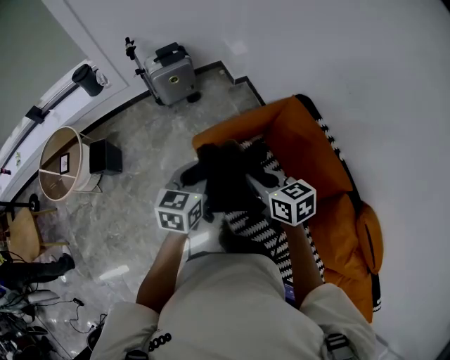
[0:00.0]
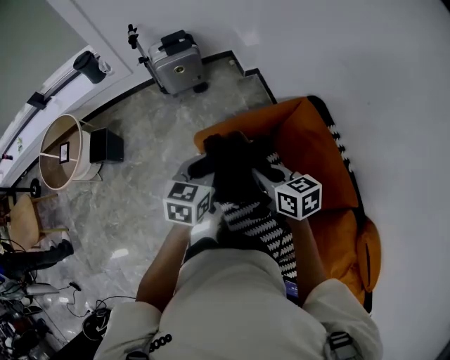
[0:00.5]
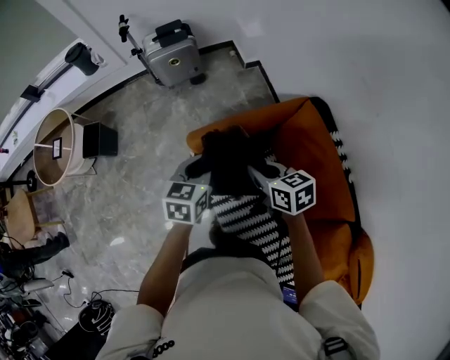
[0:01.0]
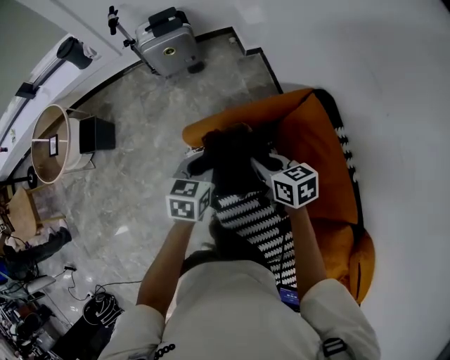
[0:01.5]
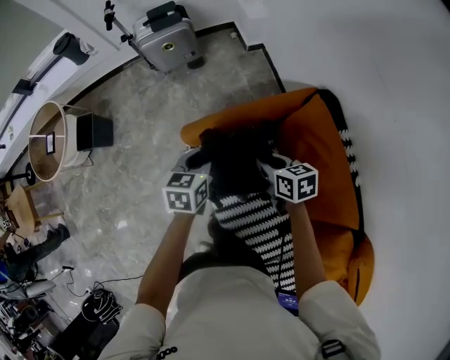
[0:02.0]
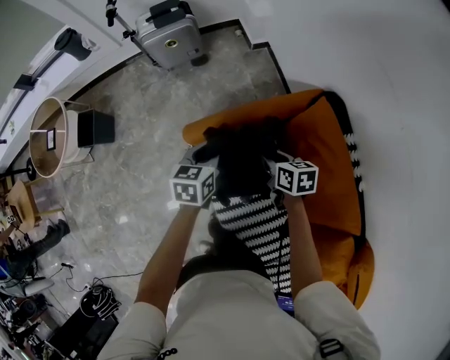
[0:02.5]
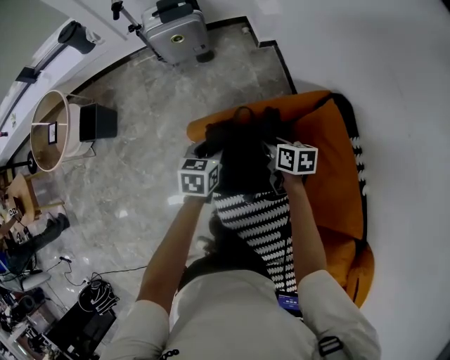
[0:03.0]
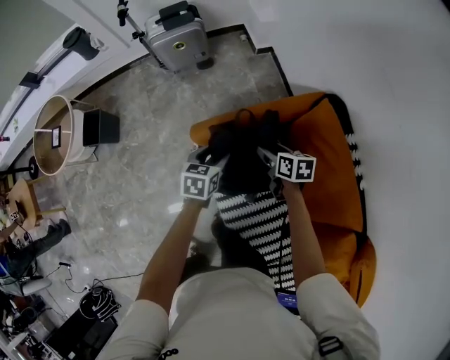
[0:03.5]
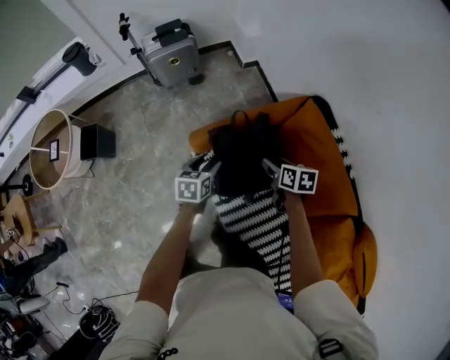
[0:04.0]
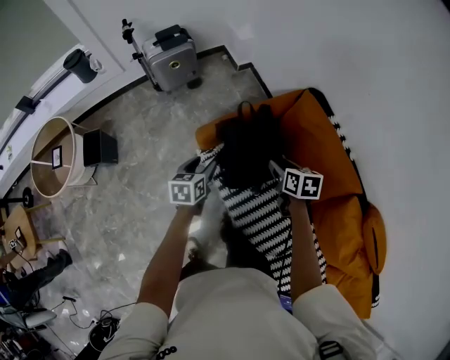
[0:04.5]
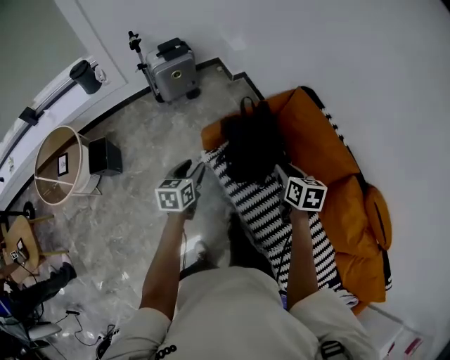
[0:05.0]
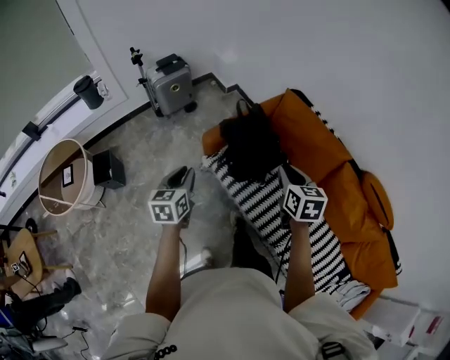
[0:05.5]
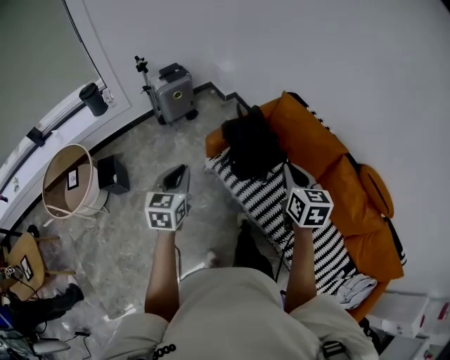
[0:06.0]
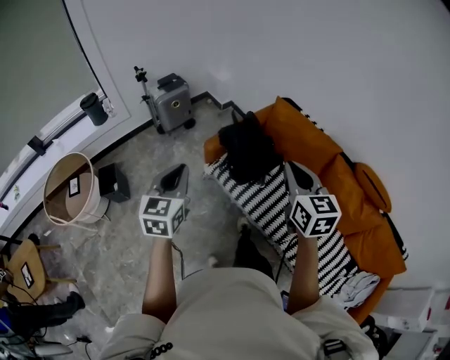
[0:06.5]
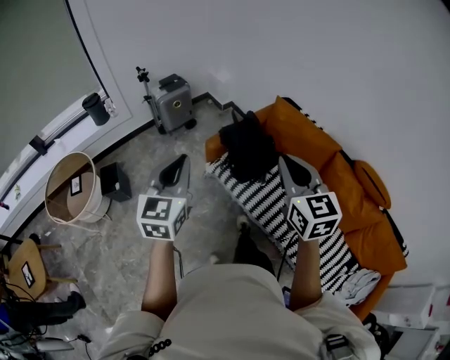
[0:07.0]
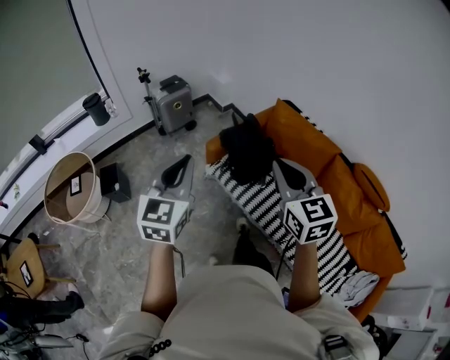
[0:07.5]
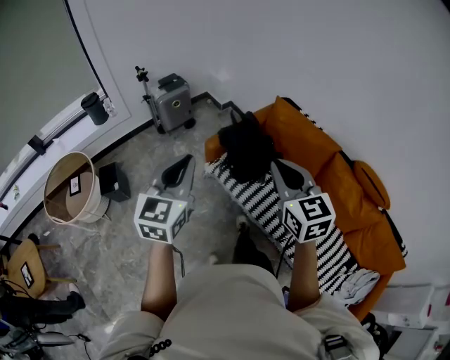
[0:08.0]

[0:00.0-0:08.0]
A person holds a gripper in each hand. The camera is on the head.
0:00.0 to 0:02.0: Both grippers move downward, forward and to the right, approximately 30 cm.
0:02.0 to 0:04.0: The left gripper travels to the left and backward by about 10 cm, and opens. The right gripper opens.
0:04.0 to 0:06.0: The left gripper moves backward, upward and to the left, approximately 40 cm, swivels about 30 degrees, and closes up. The right gripper moves backward and upward, about 50 cm, rotates some 40 degrees, and closes its fingers.
0:06.0 to 0:08.0: The left gripper shifts some 15 cm upward and backward. The right gripper goes approximately 15 cm upward, backward and to the left.

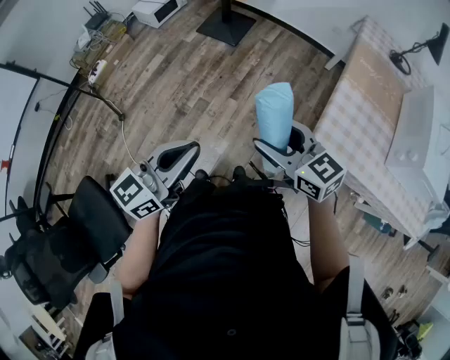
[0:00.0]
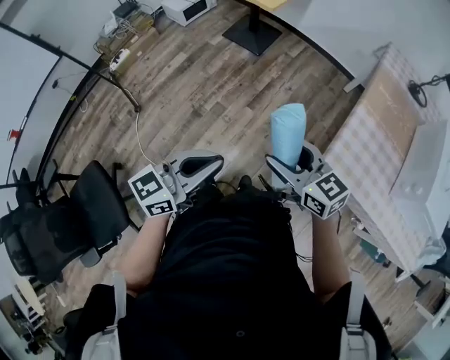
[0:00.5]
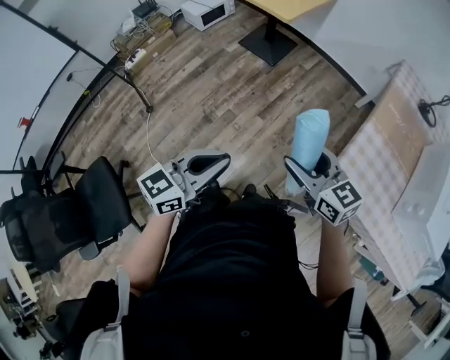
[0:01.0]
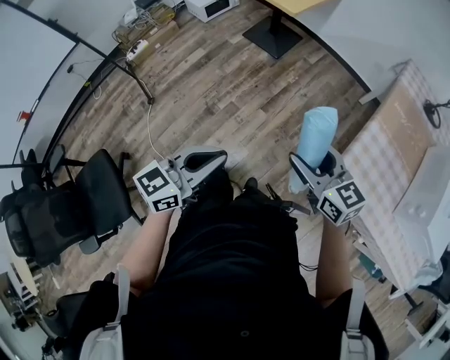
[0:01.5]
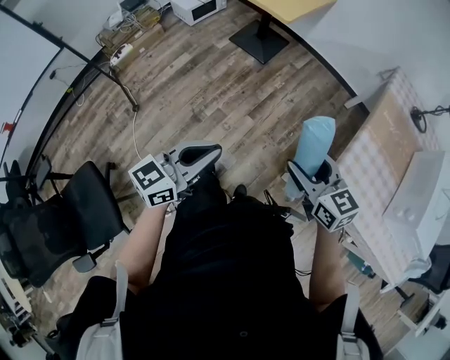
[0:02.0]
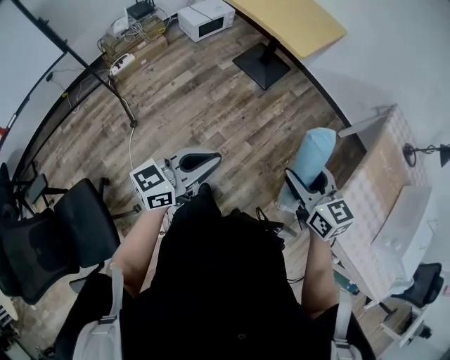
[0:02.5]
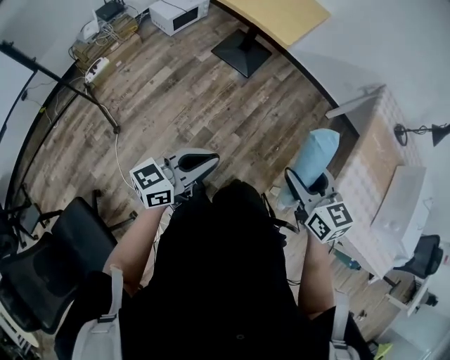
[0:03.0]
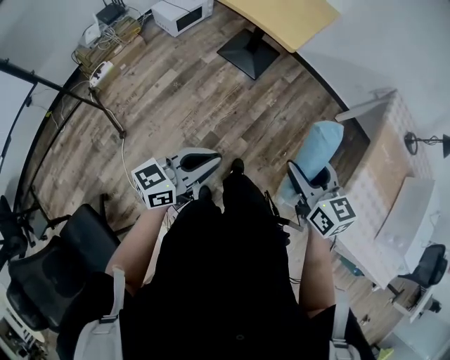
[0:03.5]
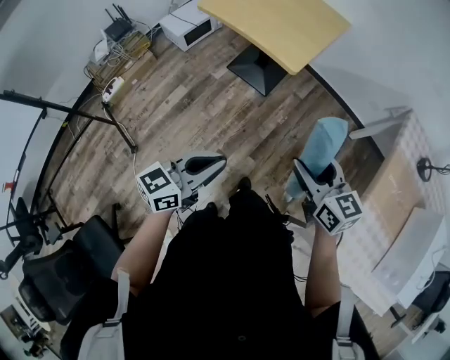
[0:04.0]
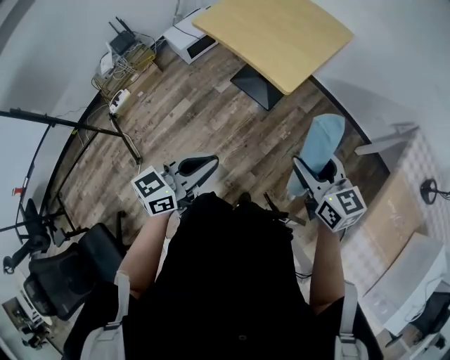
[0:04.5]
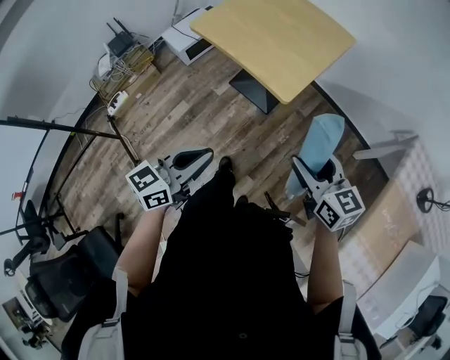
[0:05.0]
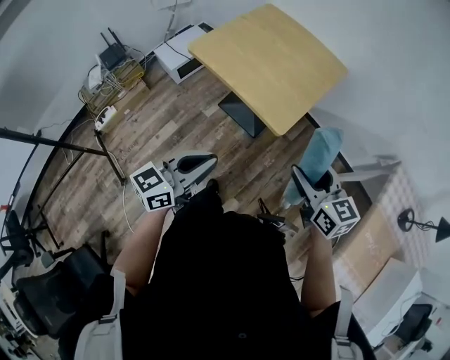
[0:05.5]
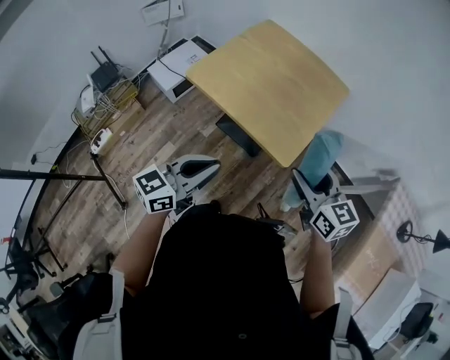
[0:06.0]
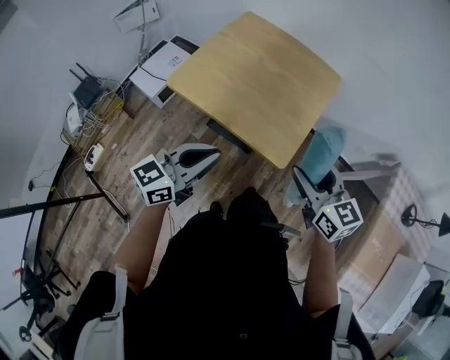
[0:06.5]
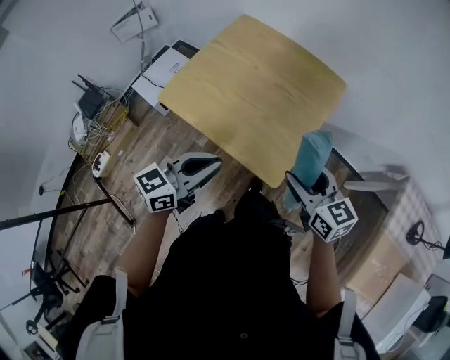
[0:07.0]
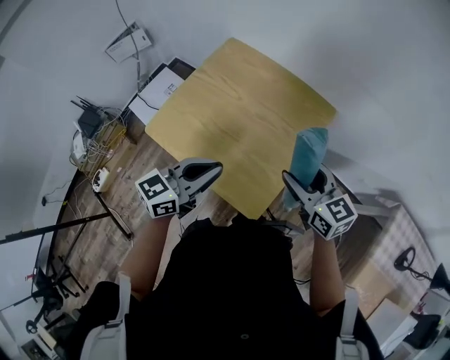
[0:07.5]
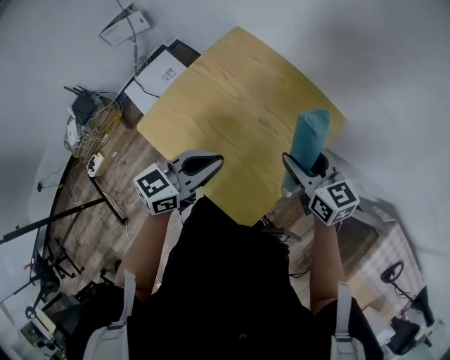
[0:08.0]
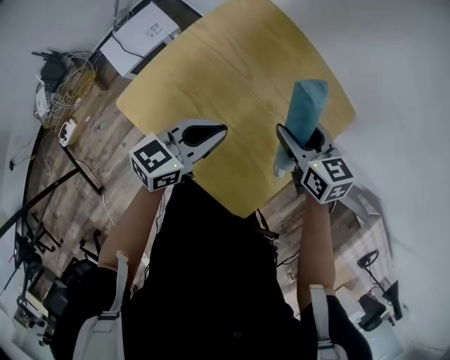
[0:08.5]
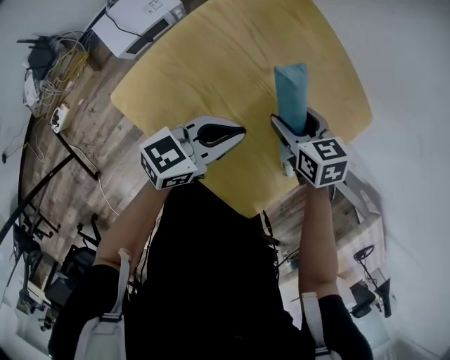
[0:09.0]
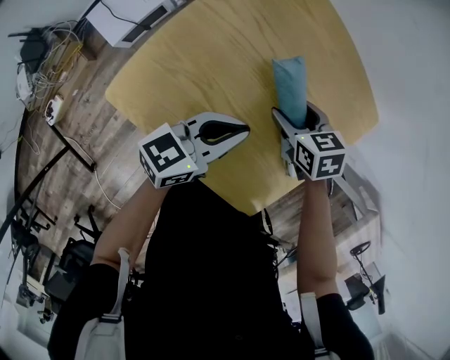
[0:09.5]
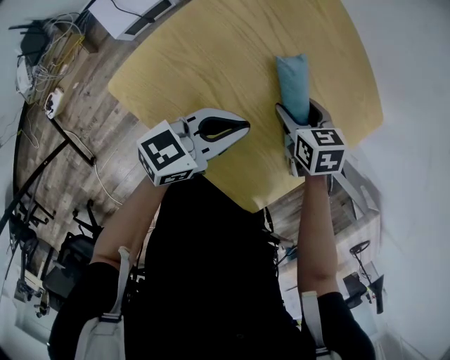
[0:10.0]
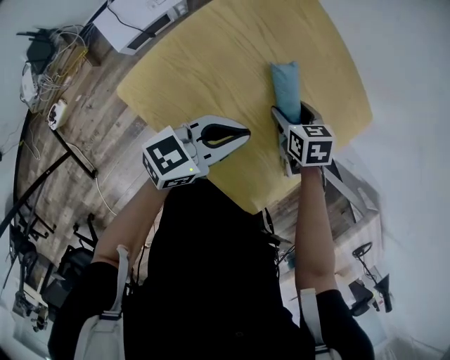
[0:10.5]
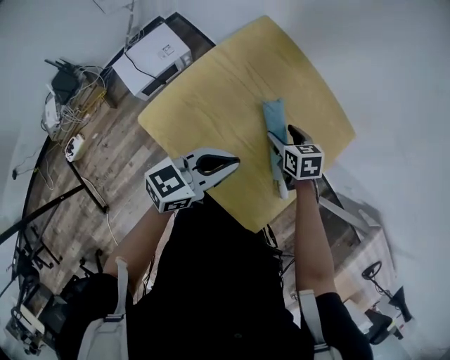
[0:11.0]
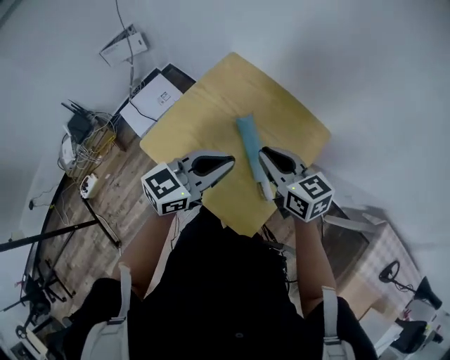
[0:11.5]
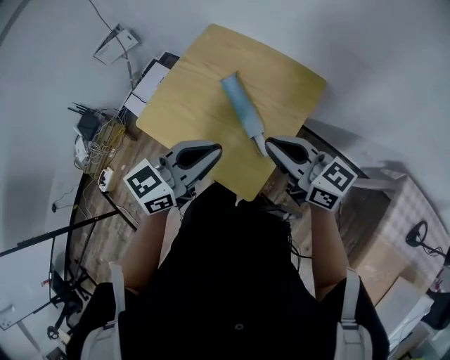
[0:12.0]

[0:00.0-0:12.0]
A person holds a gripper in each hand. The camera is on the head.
0:00.0 to 0:02.0: Both grippers move forward, about 5 cm.
0:02.0 to 0:04.0: Both grippers travel together forward, about 30 cm.
0:04.0 to 0:06.0: Both grippers move forward, approximately 35 cm.
0:06.0 to 0:08.0: The two grippers go roughly 35 cm forward.
0:08.0 to 0:10.0: The left gripper goes some 20 cm downward, forward and to the left. Meanwhile the right gripper heads downward and to the left, covering about 25 cm, and tips its fingers downward by some 40 degrees.
0:10.0 to 0:12.0: The two grippers go about 35 cm upward, backward and to the right. The right gripper tips its fingers upward by about 60 degrees, and closes up; the left gripper swivels about 20 degrees.

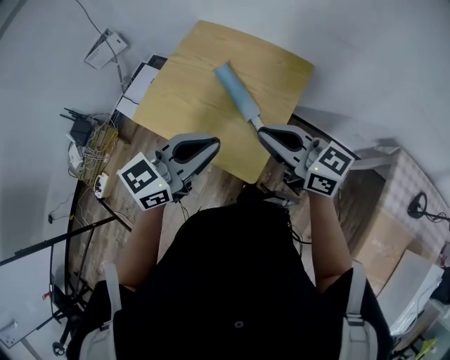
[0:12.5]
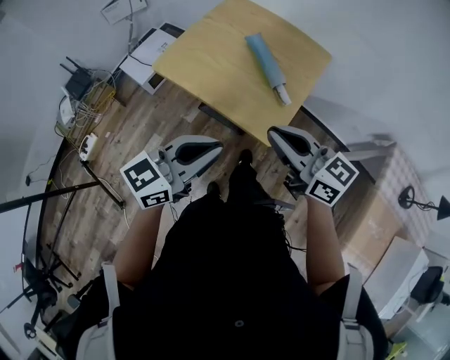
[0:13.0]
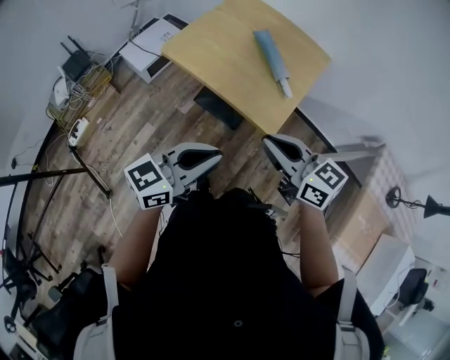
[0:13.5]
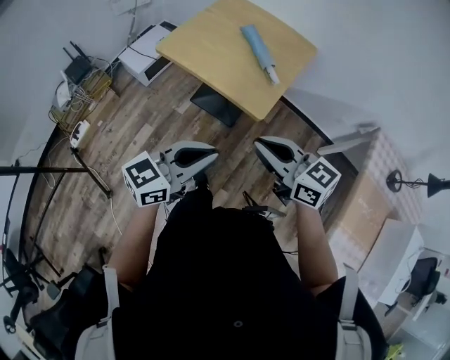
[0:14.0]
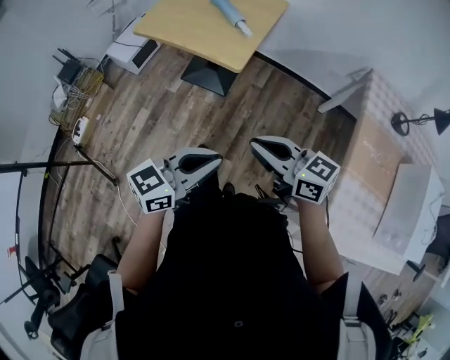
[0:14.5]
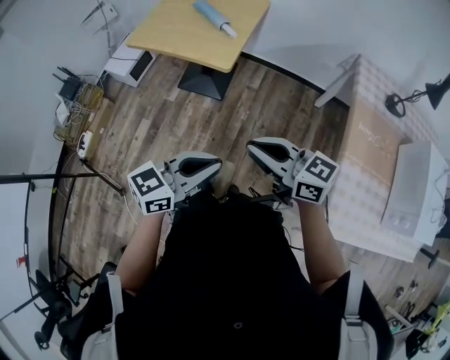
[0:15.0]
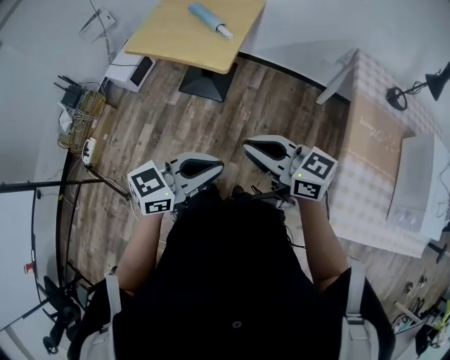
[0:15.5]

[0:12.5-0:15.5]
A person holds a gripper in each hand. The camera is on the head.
0:12.5 to 0:14.0: The grippers both shift backward by about 30 cm.
0:14.0 to 0:15.5: The right gripper ends up approximately 25 cm from where it was. Meanwhile the left gripper ends up some 25 cm from where it was.

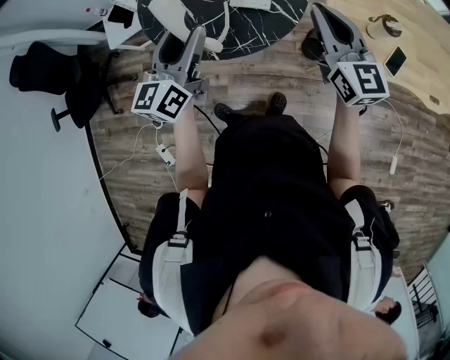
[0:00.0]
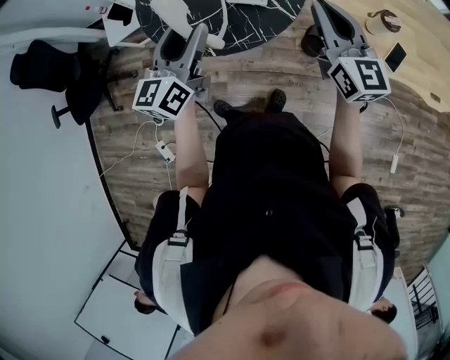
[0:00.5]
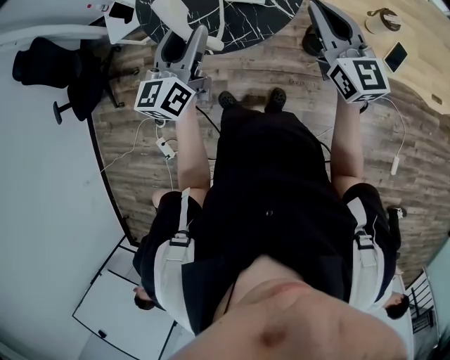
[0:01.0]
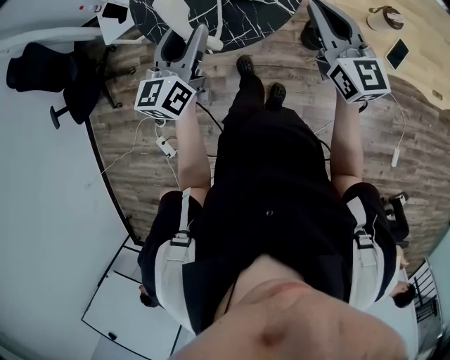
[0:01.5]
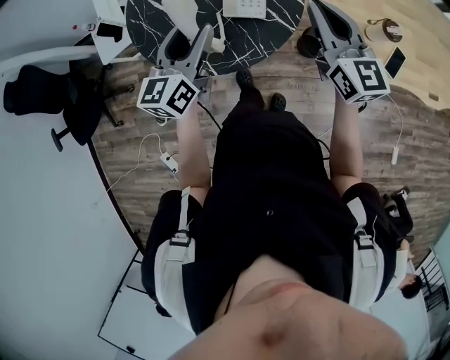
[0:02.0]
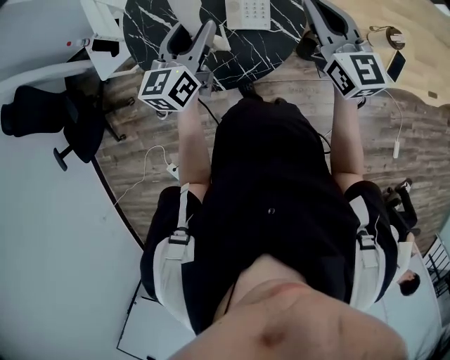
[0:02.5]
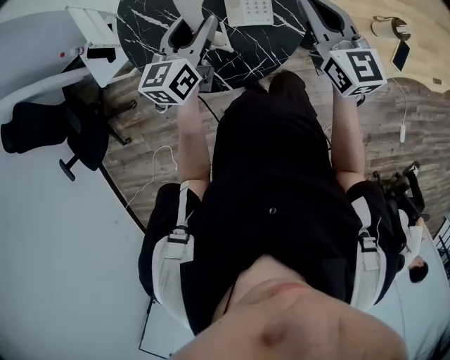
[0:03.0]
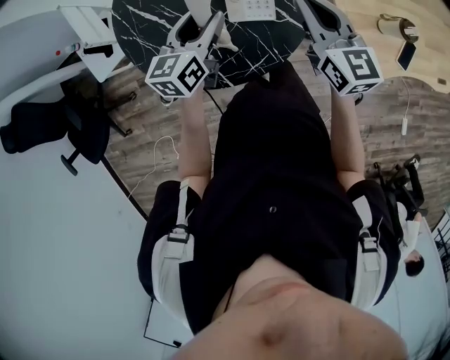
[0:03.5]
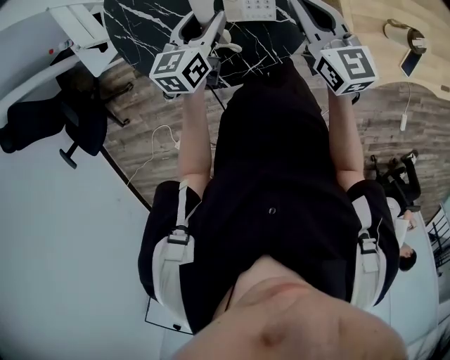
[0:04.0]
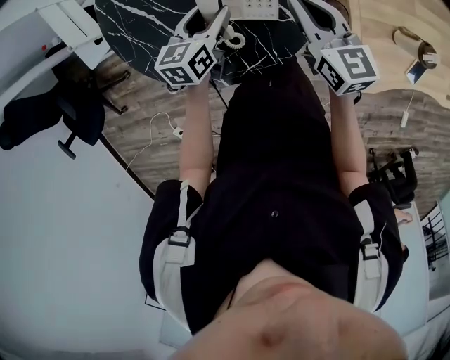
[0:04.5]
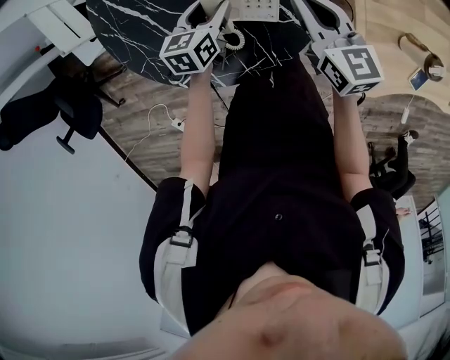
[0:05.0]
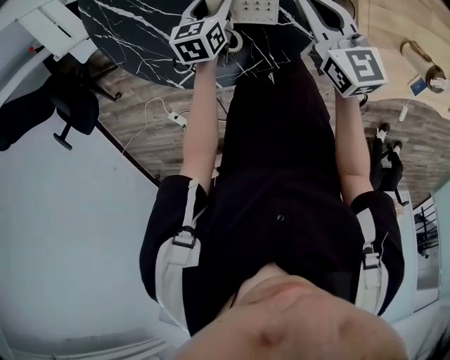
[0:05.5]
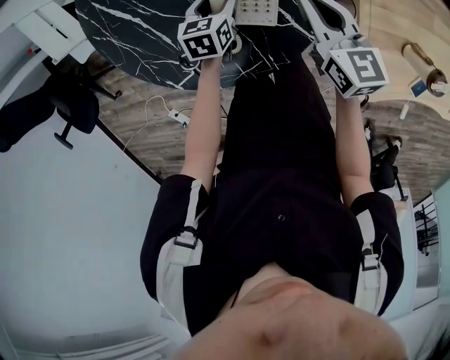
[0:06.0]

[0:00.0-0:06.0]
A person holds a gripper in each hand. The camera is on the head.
0:00.0 to 0:02.0: Both grippers move forward, roughly 10 cm.
0:02.0 to 0:04.0: The left gripper is displaced forward and downward by about 20 cm, and changes its angle by roughly 20 degrees, while the right gripper goes about 20 cm forward, downward and to the left.
0:04.0 to 0:06.0: The left gripper is displaced downward by roughly 20 cm, and turns by approximately 30 degrees. The right gripper is displaced downward and forward by about 15 cm.
